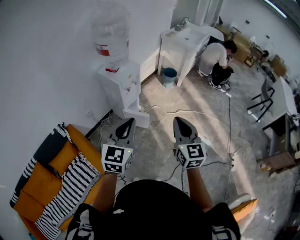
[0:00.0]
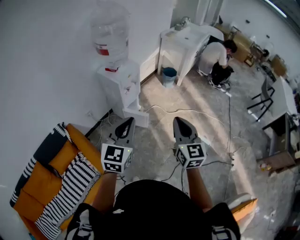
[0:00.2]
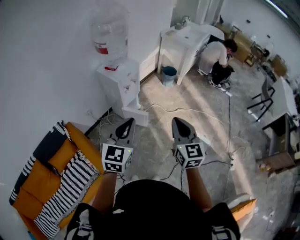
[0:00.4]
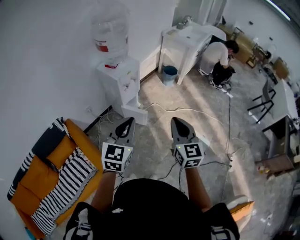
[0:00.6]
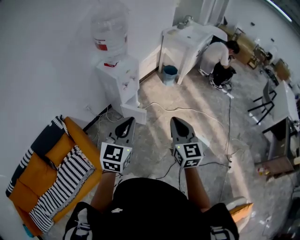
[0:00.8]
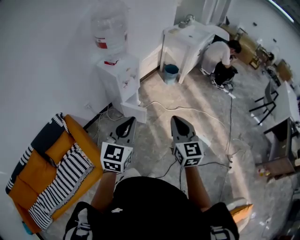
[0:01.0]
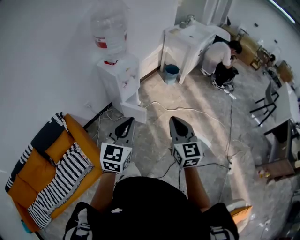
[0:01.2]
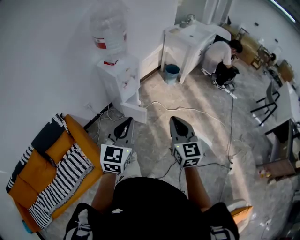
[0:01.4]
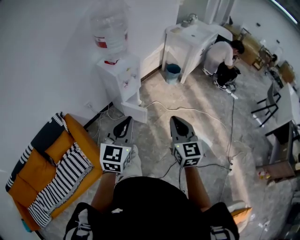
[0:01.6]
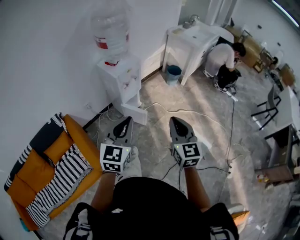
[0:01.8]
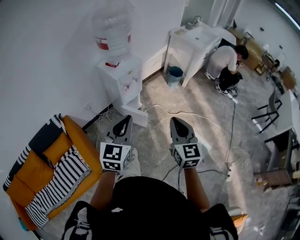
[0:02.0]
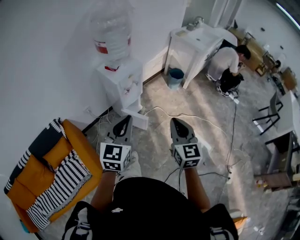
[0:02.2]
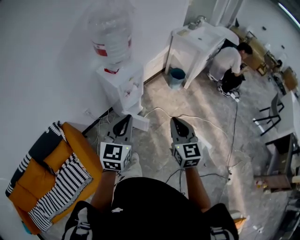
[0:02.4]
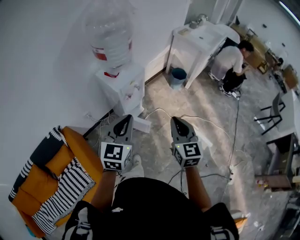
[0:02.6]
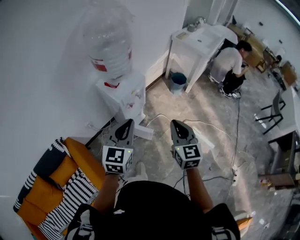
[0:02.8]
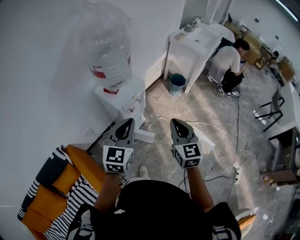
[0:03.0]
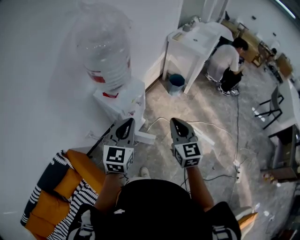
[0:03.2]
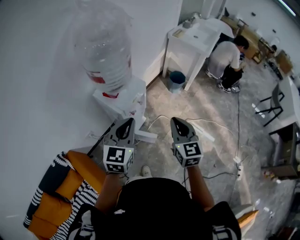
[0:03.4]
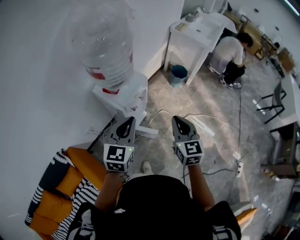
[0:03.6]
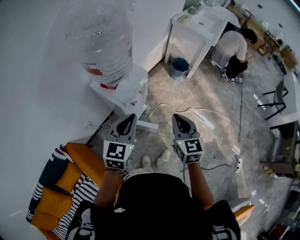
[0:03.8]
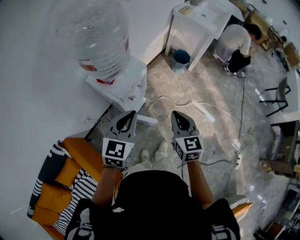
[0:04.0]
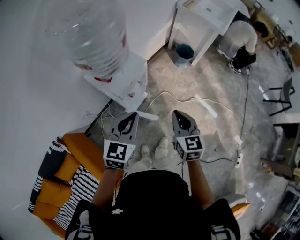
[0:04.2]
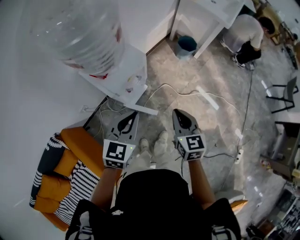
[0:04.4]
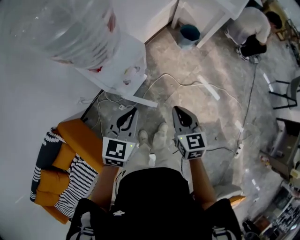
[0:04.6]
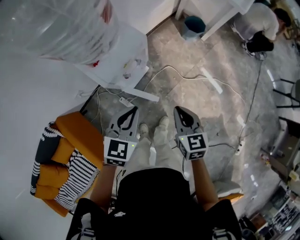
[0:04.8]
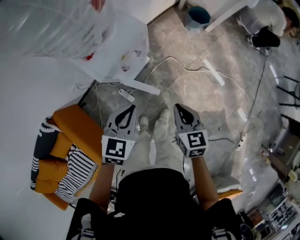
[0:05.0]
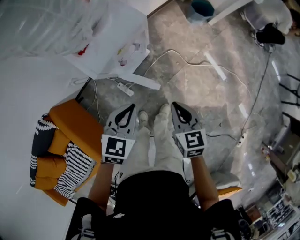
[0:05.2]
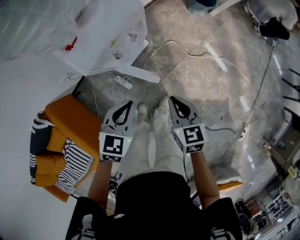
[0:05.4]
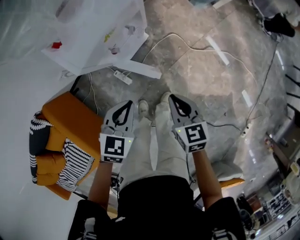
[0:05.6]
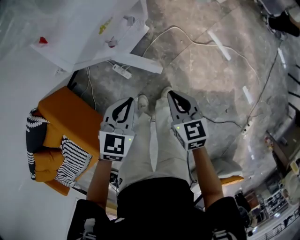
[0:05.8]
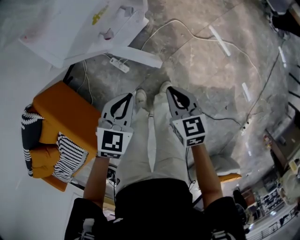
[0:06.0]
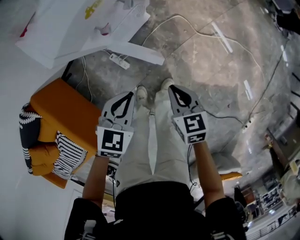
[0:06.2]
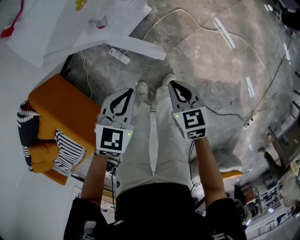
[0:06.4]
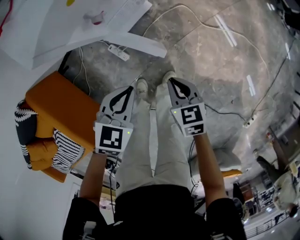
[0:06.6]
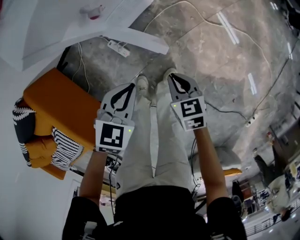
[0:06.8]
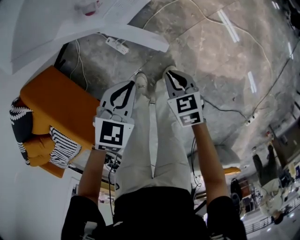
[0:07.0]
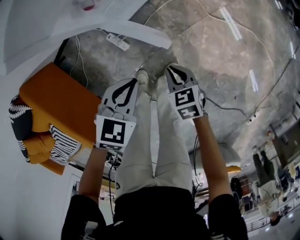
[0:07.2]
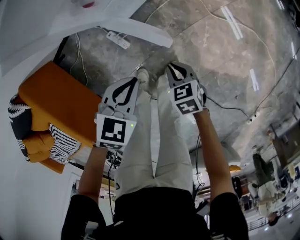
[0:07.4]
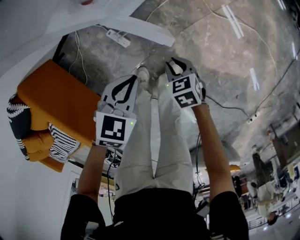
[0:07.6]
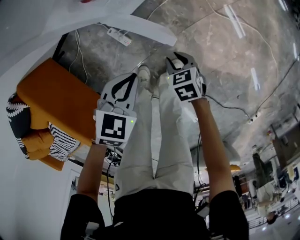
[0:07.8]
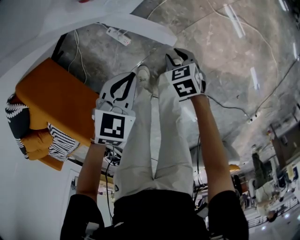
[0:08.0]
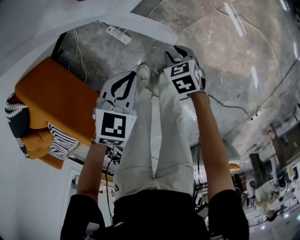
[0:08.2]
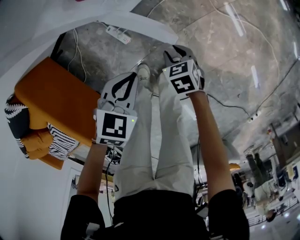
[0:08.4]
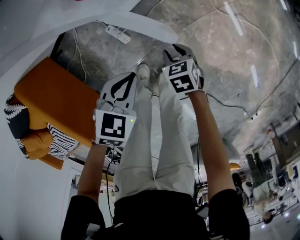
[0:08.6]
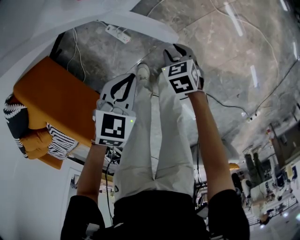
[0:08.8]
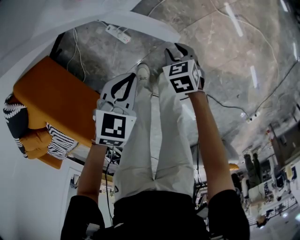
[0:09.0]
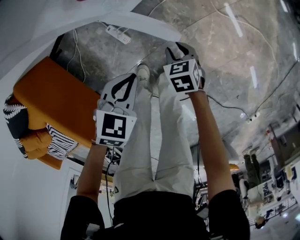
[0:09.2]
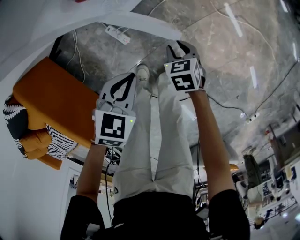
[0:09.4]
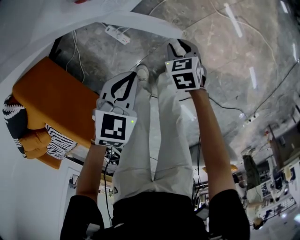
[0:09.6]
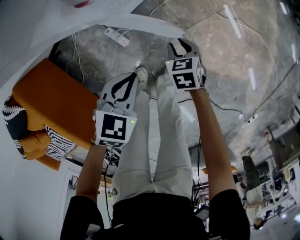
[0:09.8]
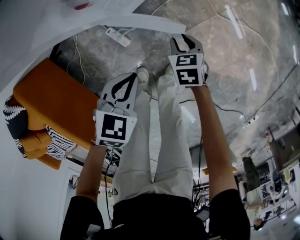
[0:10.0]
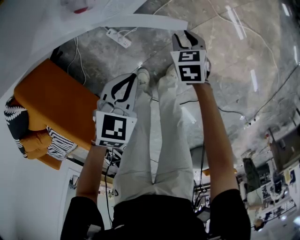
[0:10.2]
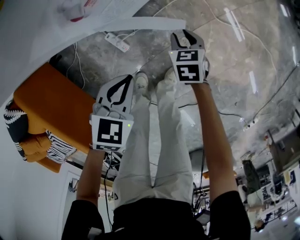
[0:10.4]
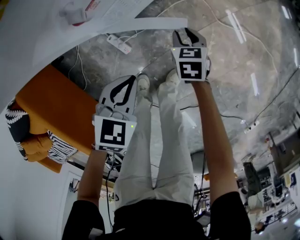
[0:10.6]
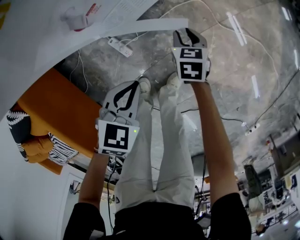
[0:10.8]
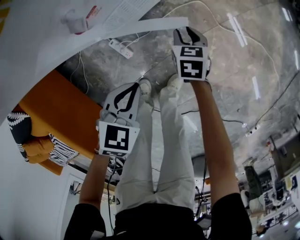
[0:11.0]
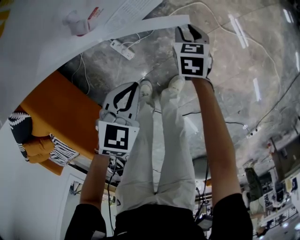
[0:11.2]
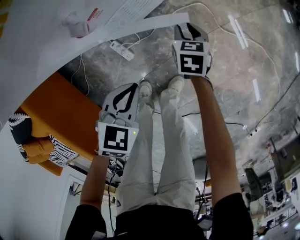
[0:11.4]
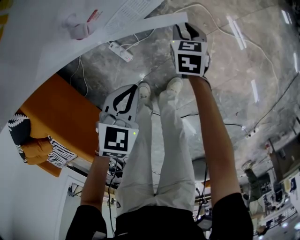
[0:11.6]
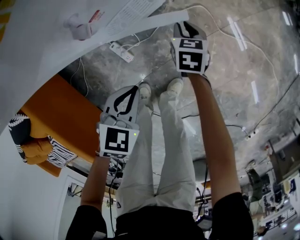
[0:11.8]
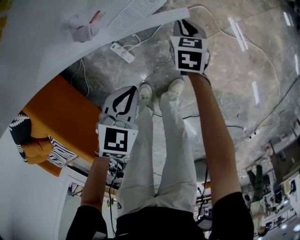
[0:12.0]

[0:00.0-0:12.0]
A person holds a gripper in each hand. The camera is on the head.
0:00.0 to 0:01.6: The grippers both shift to the right by some 5 cm.
0:01.6 to 0:03.0: The two grippers go about 30 cm forward.
0:03.0 to 0:04.4: The grippers both shift downward and forward by some 20 cm.
0:04.4 to 0:06.0: The grippers both shift downward by roughly 30 cm. The right gripper rotates some 30 degrees, while the left gripper changes its angle by some 20 degrees.
0:06.0 to 0:07.6: The left gripper goes approximately 15 cm downward; the right gripper travels downward by about 25 cm, and turns by about 30 degrees.
0:07.6 to 0:09.0: The right gripper shifts by some 5 cm.
0:09.0 to 0:10.4: The right gripper moves forward, some 10 cm.
0:10.4 to 0:12.0: The right gripper is displaced forward by roughly 10 cm.

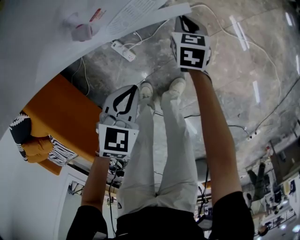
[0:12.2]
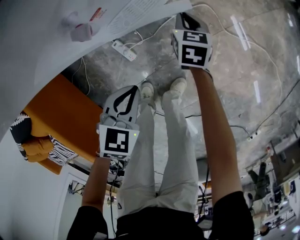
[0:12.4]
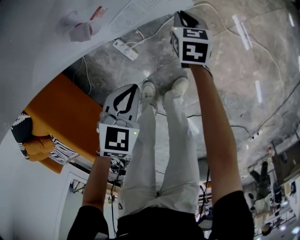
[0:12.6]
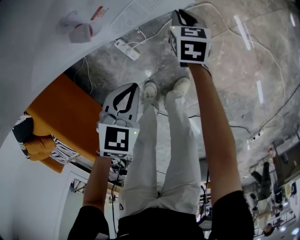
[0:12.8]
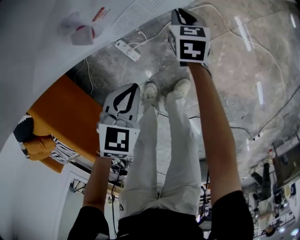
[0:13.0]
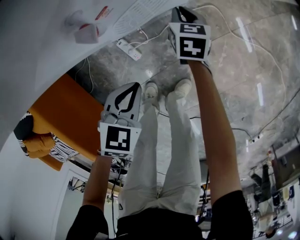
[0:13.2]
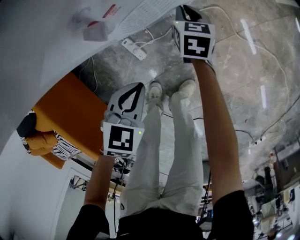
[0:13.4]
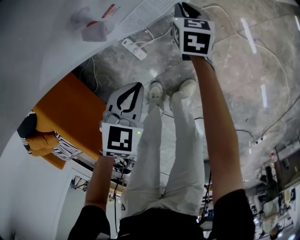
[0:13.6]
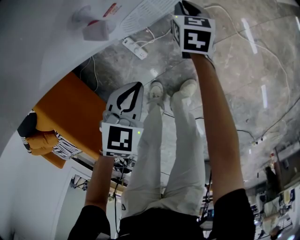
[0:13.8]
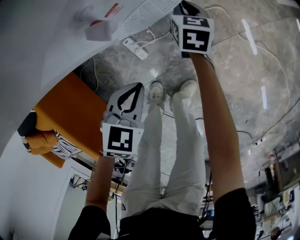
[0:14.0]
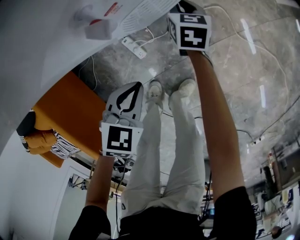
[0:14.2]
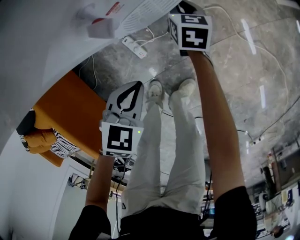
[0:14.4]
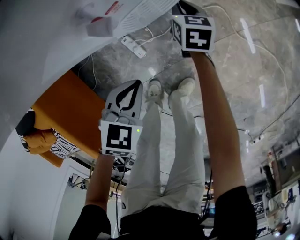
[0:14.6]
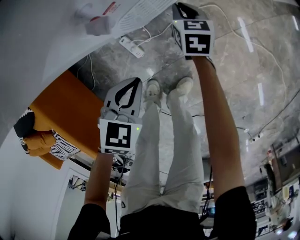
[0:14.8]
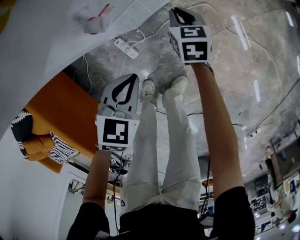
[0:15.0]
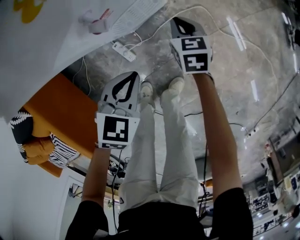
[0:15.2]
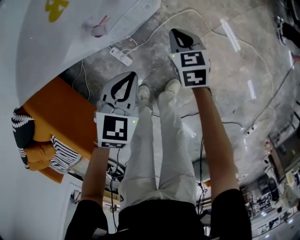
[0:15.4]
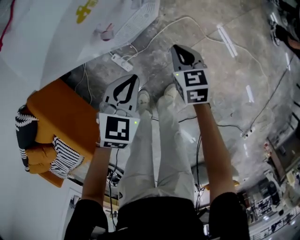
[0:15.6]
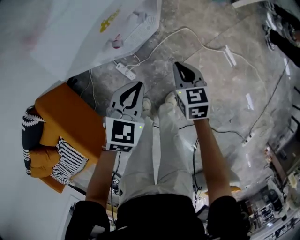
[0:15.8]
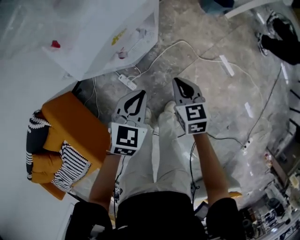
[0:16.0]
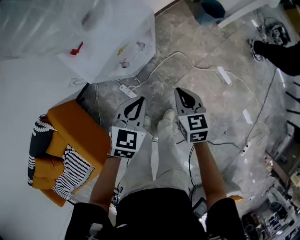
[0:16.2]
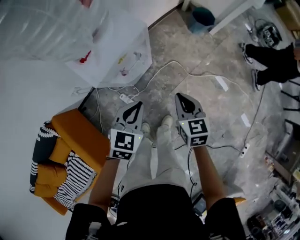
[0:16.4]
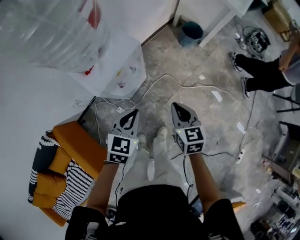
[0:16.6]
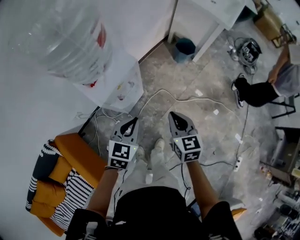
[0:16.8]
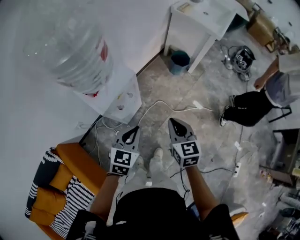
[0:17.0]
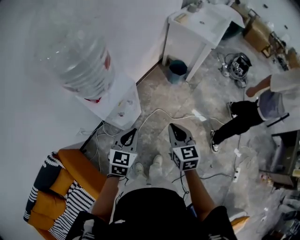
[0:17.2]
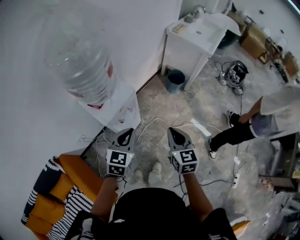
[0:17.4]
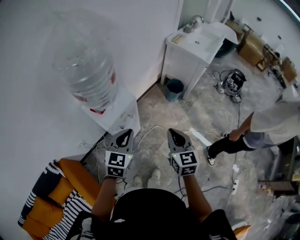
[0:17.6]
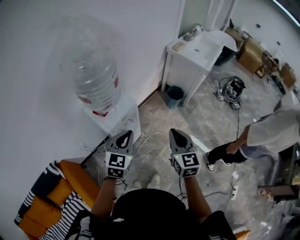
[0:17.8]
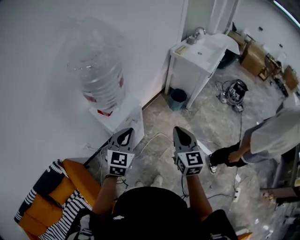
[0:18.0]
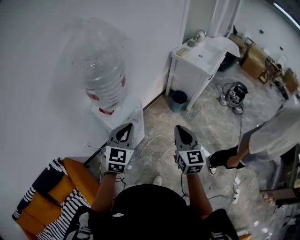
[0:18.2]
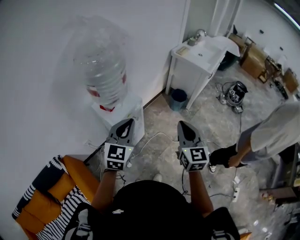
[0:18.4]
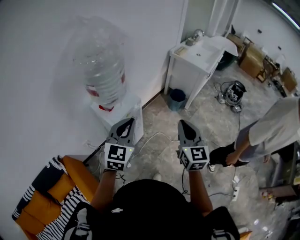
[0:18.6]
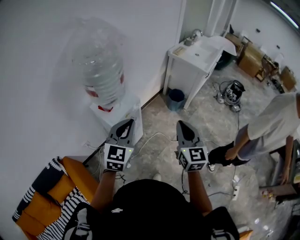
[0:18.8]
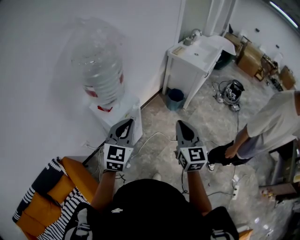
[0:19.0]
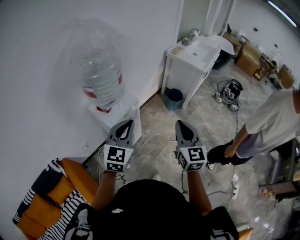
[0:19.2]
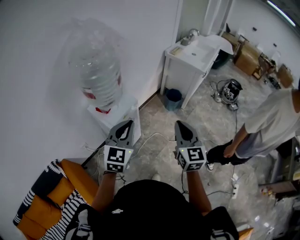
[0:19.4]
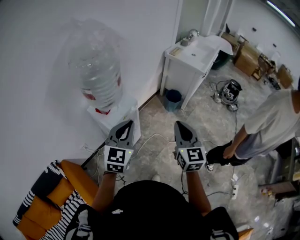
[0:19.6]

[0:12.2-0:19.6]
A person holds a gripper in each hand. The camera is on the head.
0:12.2 to 0:13.6: The right gripper moves to the left, roughly 5 cm.
0:13.6 to 0:15.2: The right gripper moves upward, some 5 cm; the left gripper shifts by roughly 5 cm.
0:15.2 to 0:16.6: The grippers both shift upward by roughly 35 cm.
0:16.6 to 0:18.2: Both grippers travel together upward, roughly 25 cm. The left gripper swivels approximately 30 degrees, while the right gripper changes its angle by some 30 degrees.
0:18.2 to 0:19.6: The grippers move only a little.

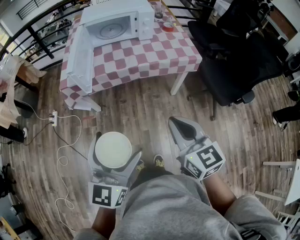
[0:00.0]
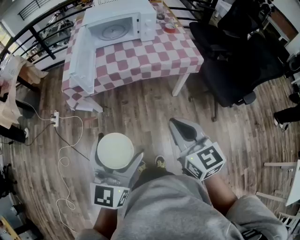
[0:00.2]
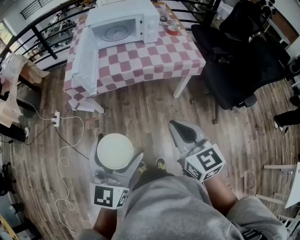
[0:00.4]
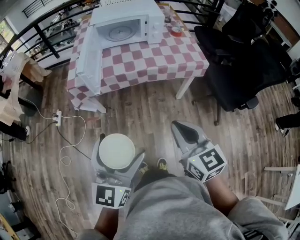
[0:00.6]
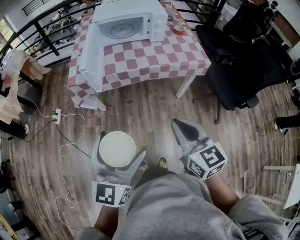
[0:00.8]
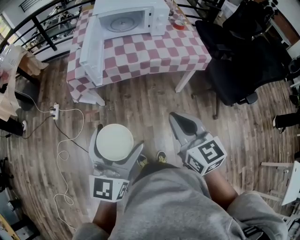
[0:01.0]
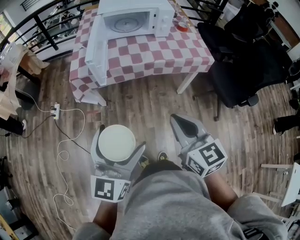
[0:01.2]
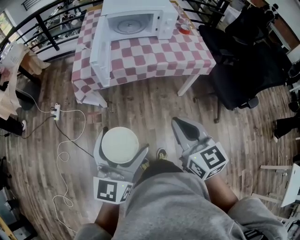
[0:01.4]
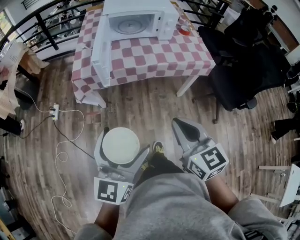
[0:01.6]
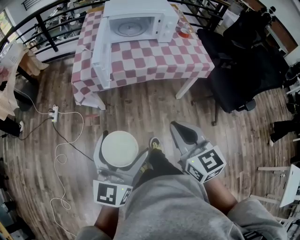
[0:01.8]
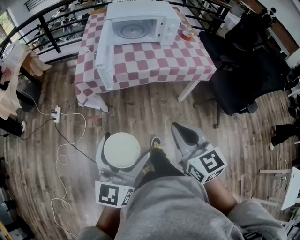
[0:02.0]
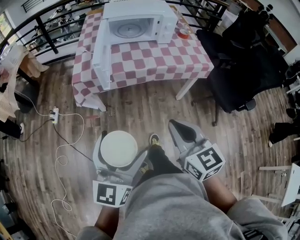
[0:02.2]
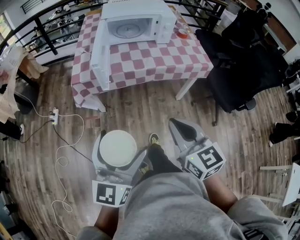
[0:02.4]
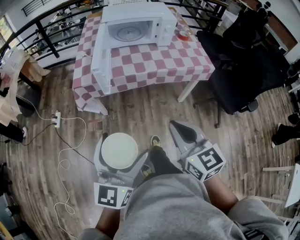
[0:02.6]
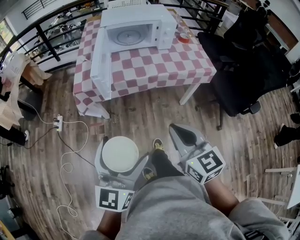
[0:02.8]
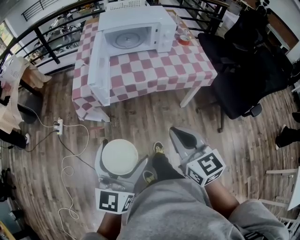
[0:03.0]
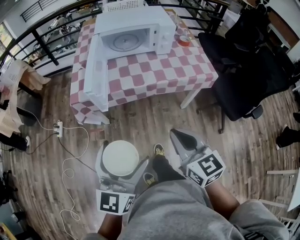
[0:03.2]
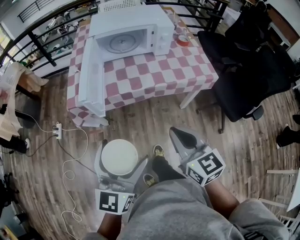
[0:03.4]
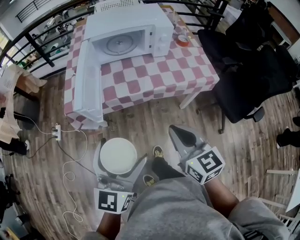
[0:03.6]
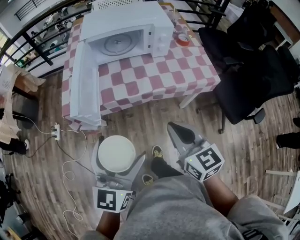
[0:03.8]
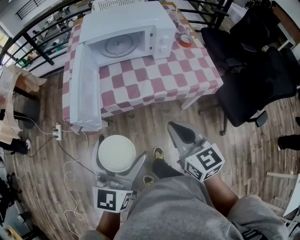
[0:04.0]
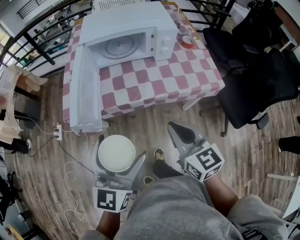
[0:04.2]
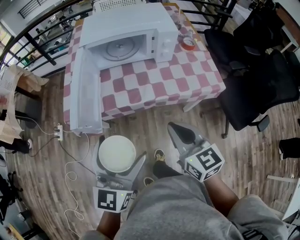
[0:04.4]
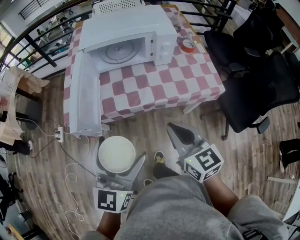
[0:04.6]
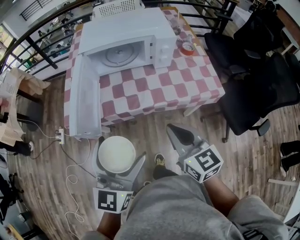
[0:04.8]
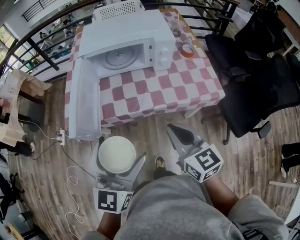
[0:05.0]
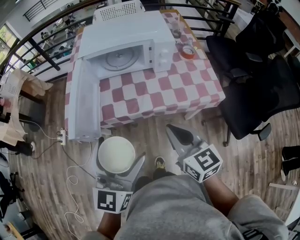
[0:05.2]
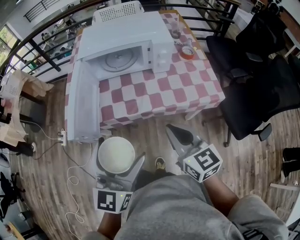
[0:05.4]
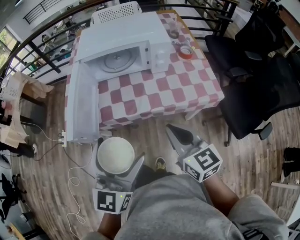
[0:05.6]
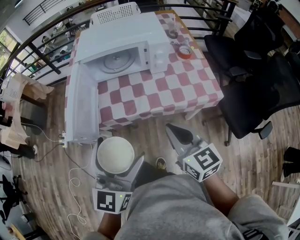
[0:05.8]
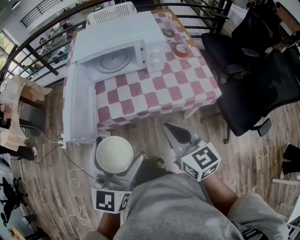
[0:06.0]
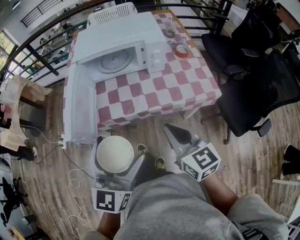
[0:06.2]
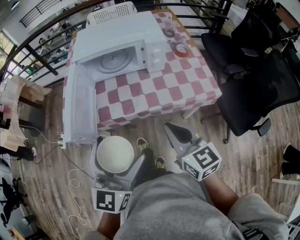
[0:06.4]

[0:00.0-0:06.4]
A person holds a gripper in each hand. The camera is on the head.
0:00.0 to 0:01.6: Both grippers travel together to the left, approximately 10 cm.
0:01.6 to 0:03.2: Both grippers travel together forward, some 10 cm.
0:03.2 to 0:04.8: The right gripper travels forward by approximately 20 cm. Meanwhile the left gripper is displaced forward and to the right by roughly 20 cm.
0:04.8 to 0:06.4: The grippers move only a little.
